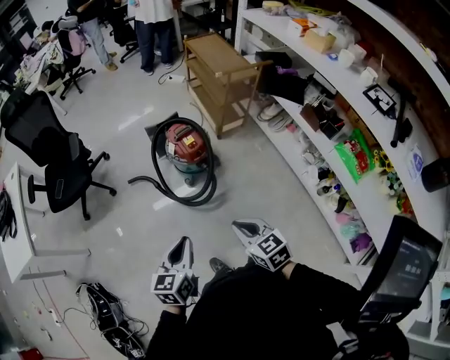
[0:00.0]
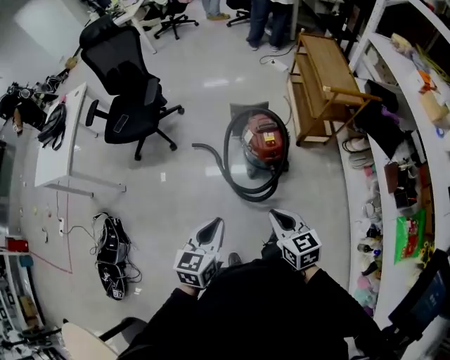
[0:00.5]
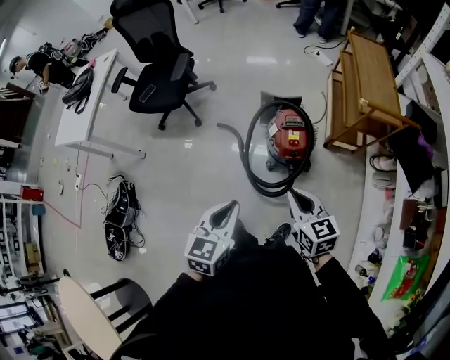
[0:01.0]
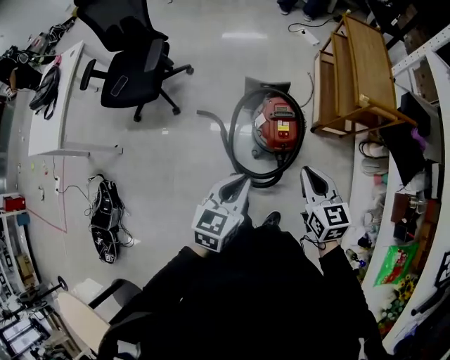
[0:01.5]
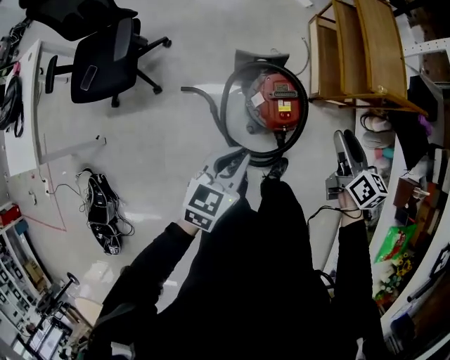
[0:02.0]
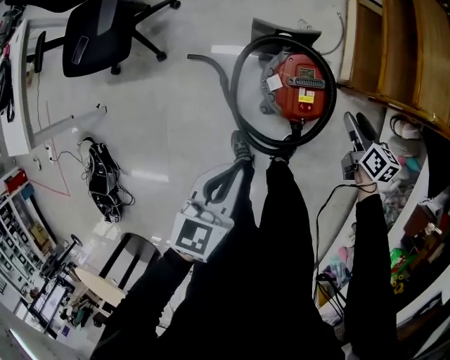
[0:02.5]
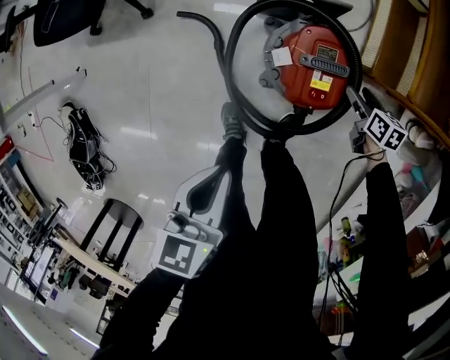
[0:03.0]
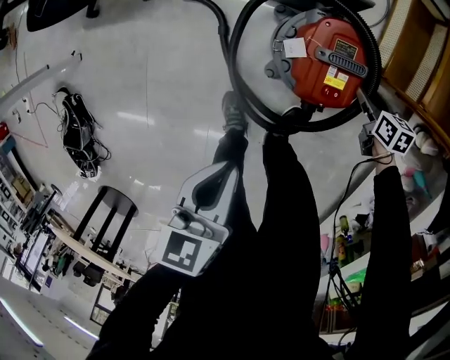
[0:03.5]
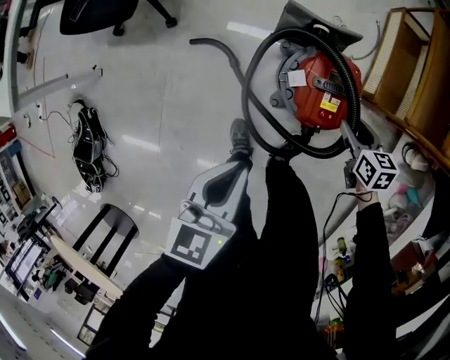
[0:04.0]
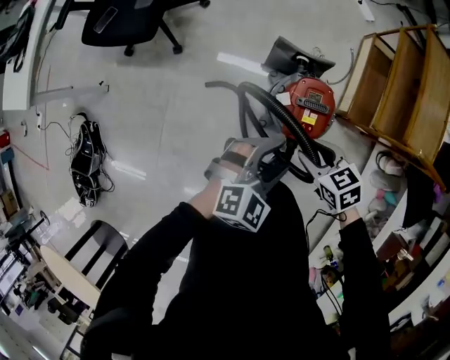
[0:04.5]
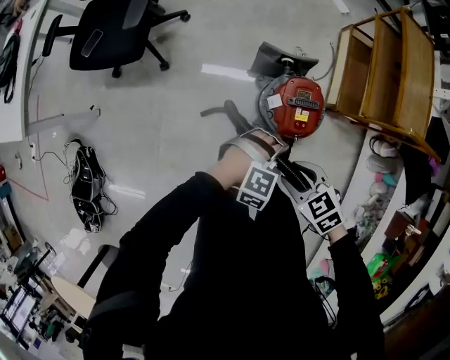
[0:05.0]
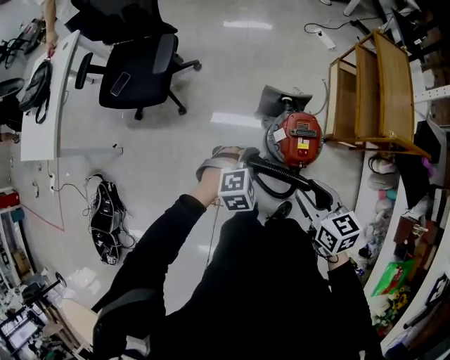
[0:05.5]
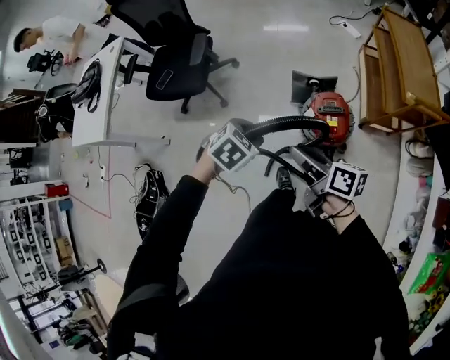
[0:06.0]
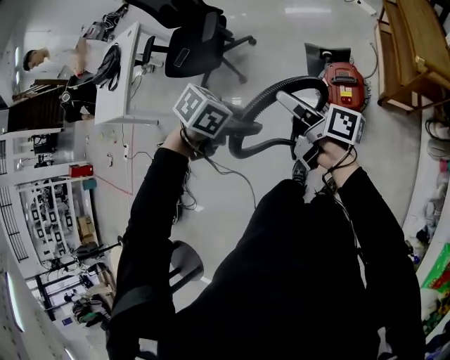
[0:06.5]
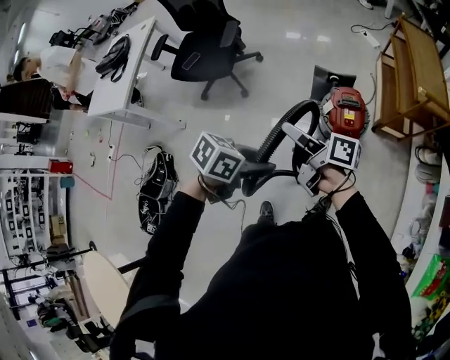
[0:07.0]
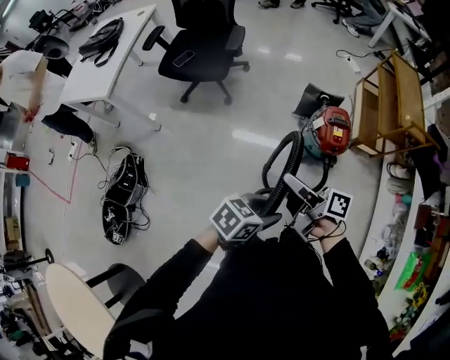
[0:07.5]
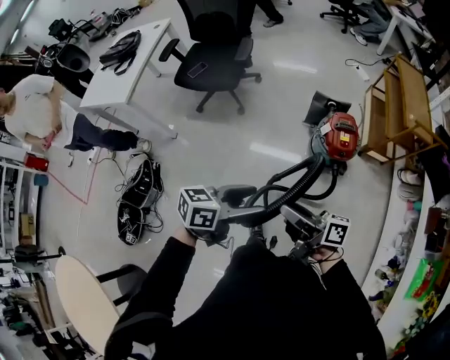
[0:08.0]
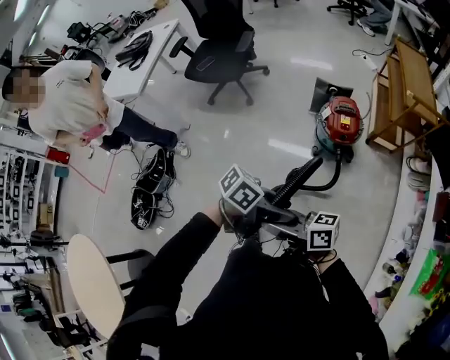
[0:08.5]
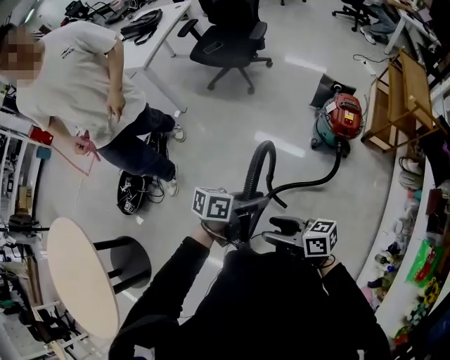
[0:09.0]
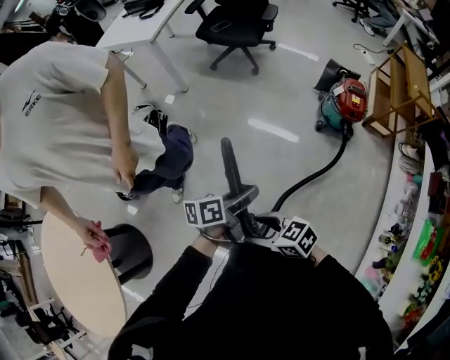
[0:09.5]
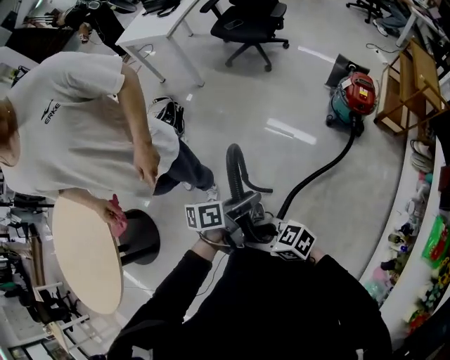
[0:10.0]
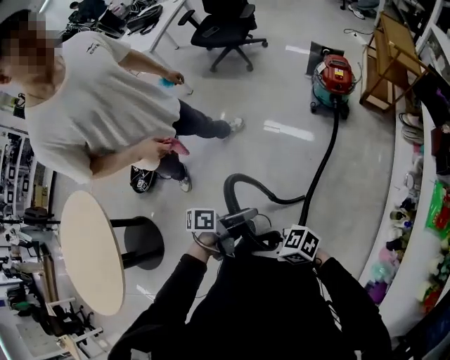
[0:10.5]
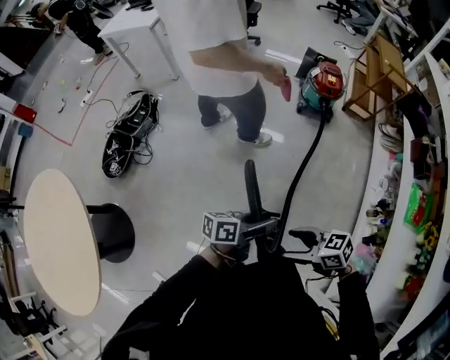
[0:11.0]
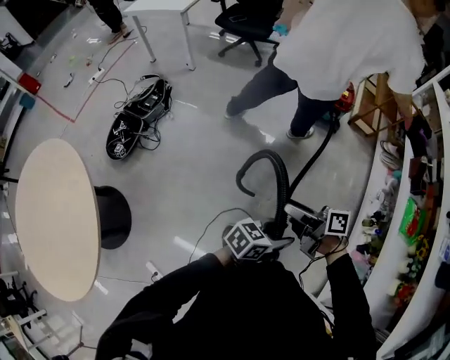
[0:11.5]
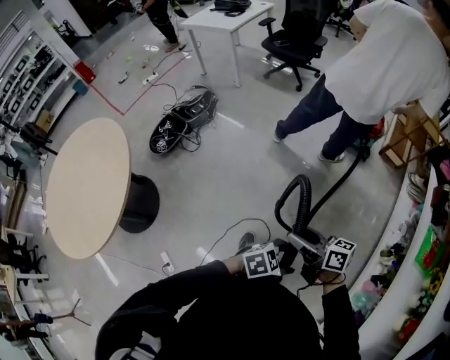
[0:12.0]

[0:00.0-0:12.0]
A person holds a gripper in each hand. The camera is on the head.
0:00.0 to 0:02.0: The pair of grippers is taken approximately 50 cm. The right gripper turns by some 30 degrees, and opens.
0:02.0 to 0:04.0: The left gripper shifts some 20 cm downward, and turns by about 30 degrees, while the right gripper heads downward, covering some 35 cm, and swivels some 40 degrees.
0:04.0 to 0:06.0: The left gripper swings up and down, some 20 cm each way, with 2 reversals, rolls clockwise, seen from behind, by roughly 40 degrees, and opens. Meanwhile the right gripper shifts some 40 cm upward, and angles its fingers upward, by some 40 degrees.
0:06.0 to 0:08.0: The left gripper changes place by about 40 cm, angles its fingers upward, by about 50 degrees, and opens up. Meanwhile the right gripper changes place by roughly 35 cm, and changes its angle by roughly 20 degrees.
0:08.0 to 0:10.0: The pair of grippers is taken some 50 cm. The right gripper points its fingers about 30 degrees further downward, while the left gripper changes its angle by about 40 degrees, and closes up.
0:10.0 to 0:12.0: The right gripper shifts by approximately 25 cm, and turns by about 40 degrees, while the left gripper ends up some 50 cm from where it was, and rotates around the line of its fingers by about 60 degrees, clockwise from behind.

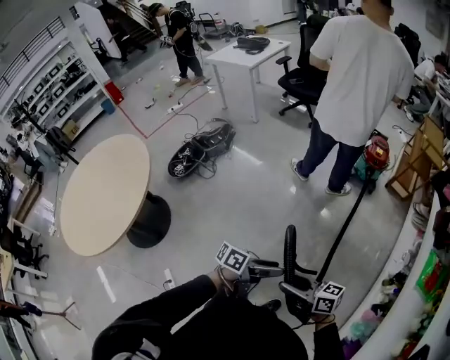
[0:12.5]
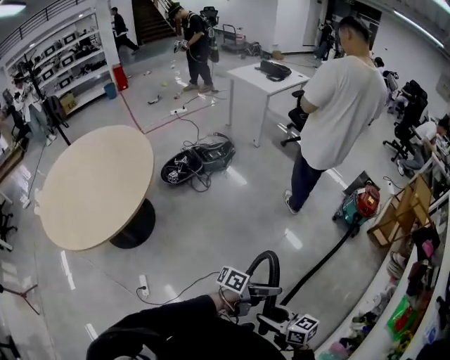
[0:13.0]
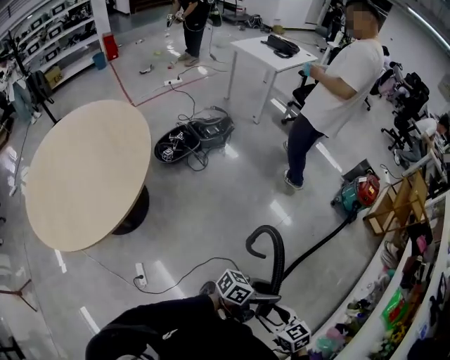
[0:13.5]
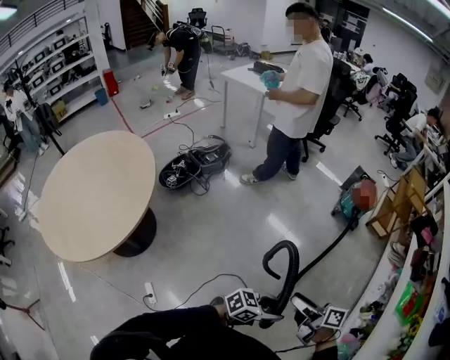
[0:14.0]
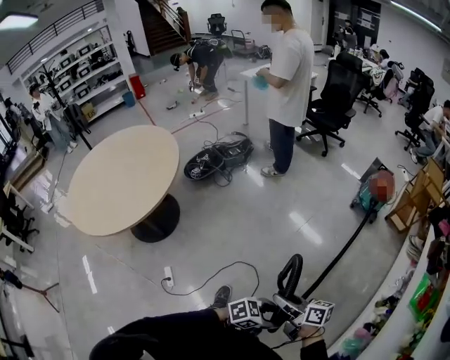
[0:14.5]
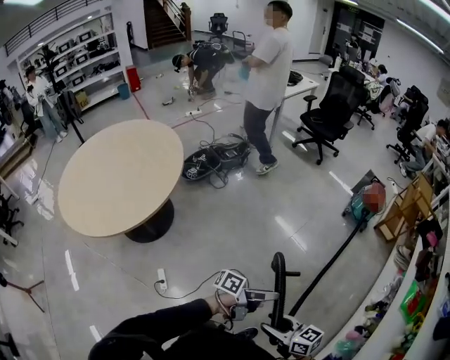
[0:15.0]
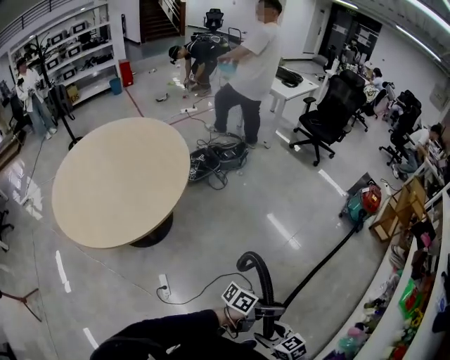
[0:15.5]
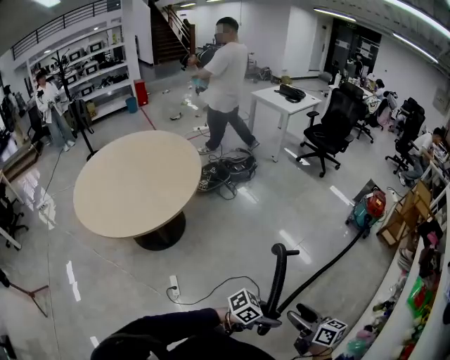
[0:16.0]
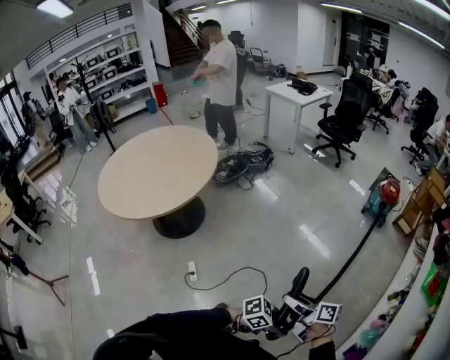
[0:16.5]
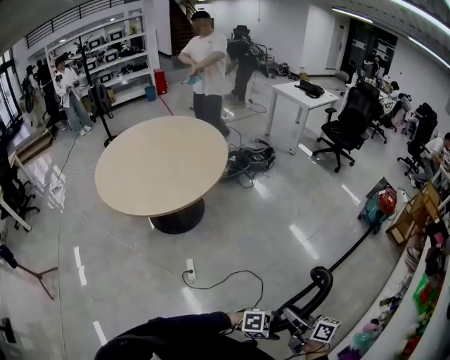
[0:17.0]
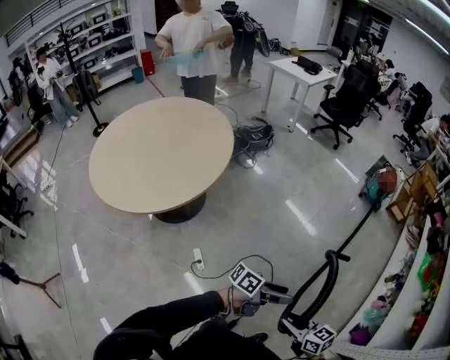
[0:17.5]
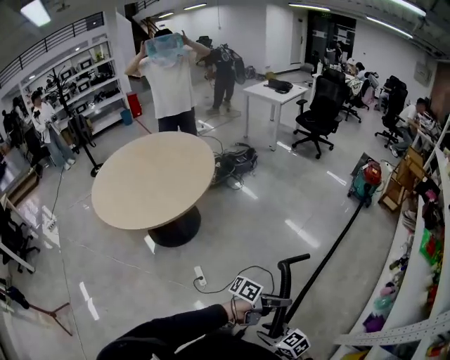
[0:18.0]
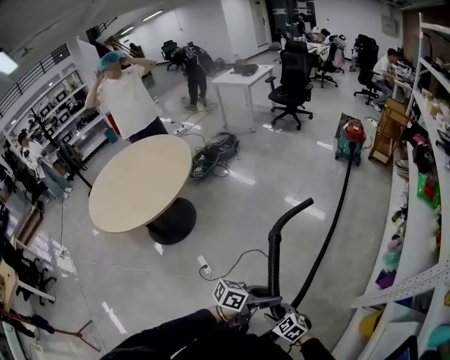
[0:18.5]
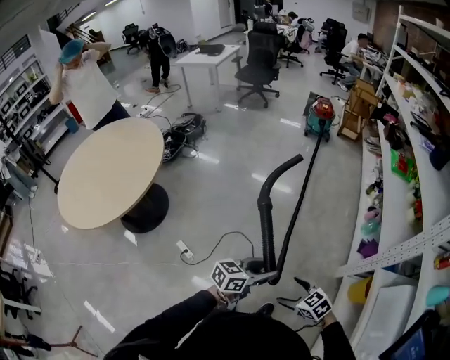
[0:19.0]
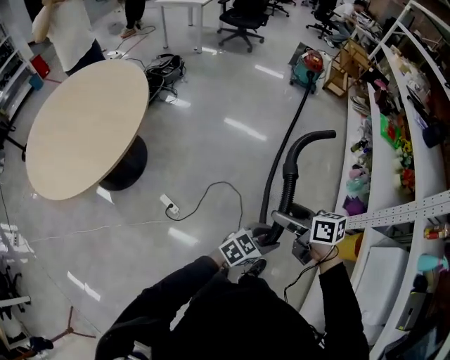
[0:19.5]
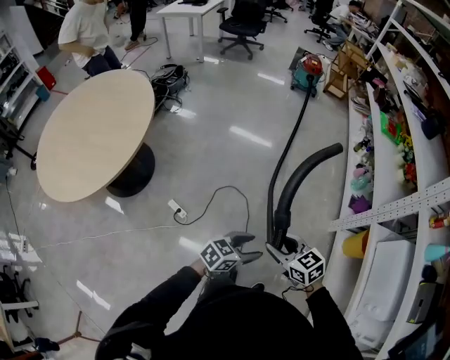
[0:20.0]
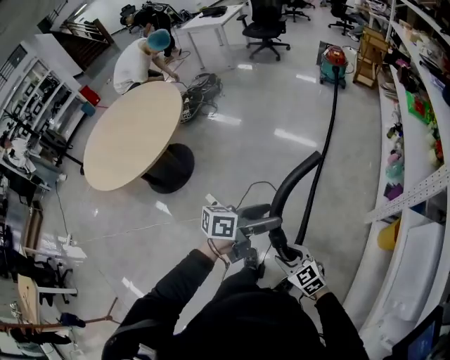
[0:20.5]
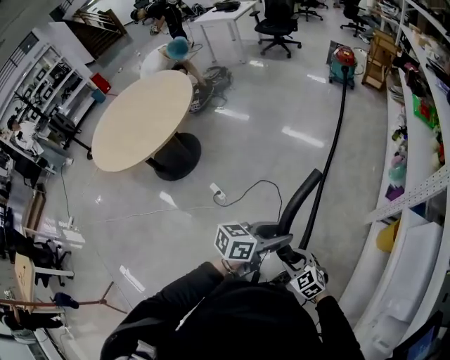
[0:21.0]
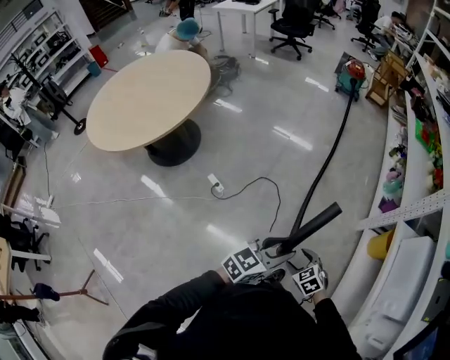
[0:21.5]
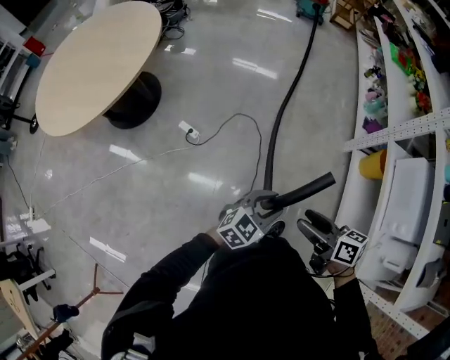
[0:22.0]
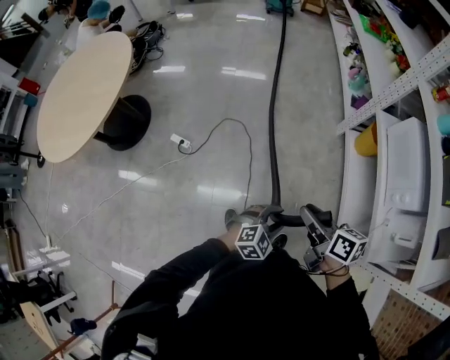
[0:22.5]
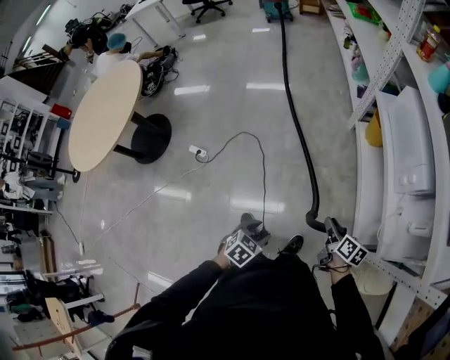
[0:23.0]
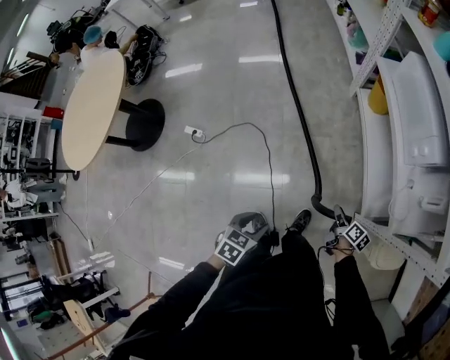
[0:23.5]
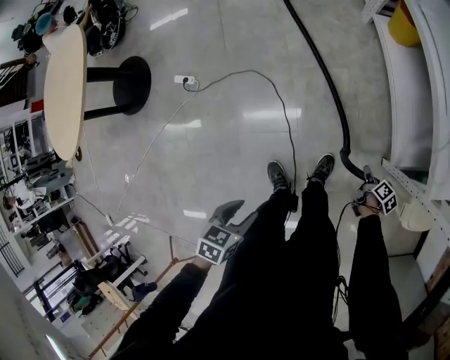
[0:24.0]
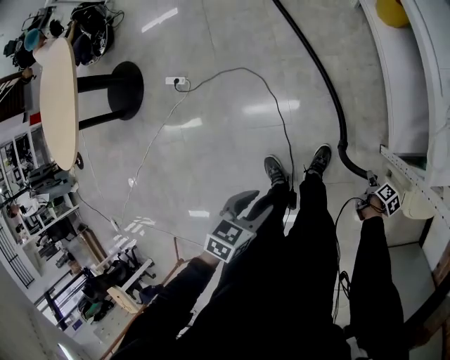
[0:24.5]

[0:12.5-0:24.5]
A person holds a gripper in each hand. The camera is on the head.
0:12.5 to 0:14.5: The left gripper changes place by approximately 25 cm, and rolls clockwise, seen from behind, by some 40 degrees. The right gripper goes up and down, about 10 cm each way, reversing 2 times.
0:14.5 to 0:16.5: The right gripper goes downward and returns, some 5 cm each way. Meanwhile the left gripper changes place by approximately 25 cm, and opens, then closes again.
0:16.5 to 0:18.5: The right gripper ends up about 40 cm from where it was, rolls counterclockwise, seen from behind, by approximately 60 degrees, and closes its fingers; the left gripper changes place by approximately 20 cm, swivels roughly 30 degrees, and opens, then closes once more.
0:18.5 to 0:20.5: The left gripper moves some 15 cm, and opens up, while the right gripper opens, then closes again.
0:20.5 to 0:22.5: The right gripper moves backward and upward, about 20 cm, and rolls clockwise, seen from behind, by roughly 60 degrees. Meanwhile the left gripper goes roughly 40 cm backward and downward, rolls clockwise, seen from behind, by some 70 degrees, and closes.
0:22.5 to 0:24.5: The left gripper travels backward, downward and to the right by about 20 cm, and rolls counterclockwise, seen from behind, by about 50 degrees, while the right gripper heads downward and to the right, covering some 70 cm, and tilts its fingers about 40 degrees downward.

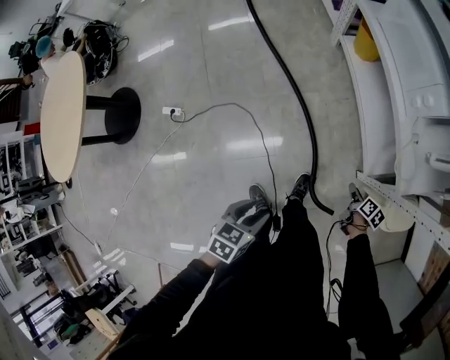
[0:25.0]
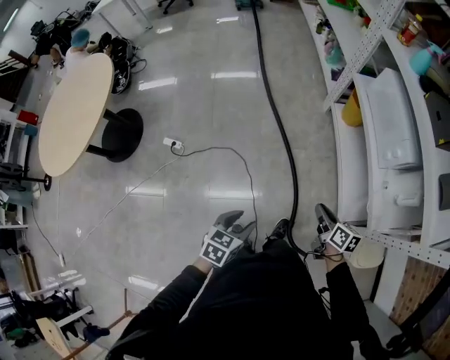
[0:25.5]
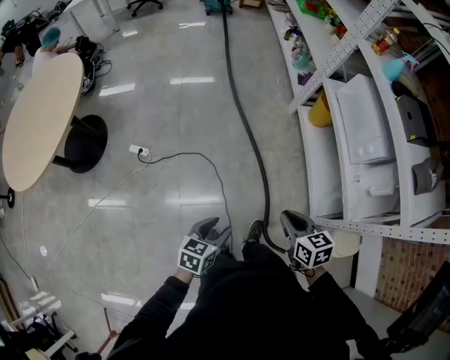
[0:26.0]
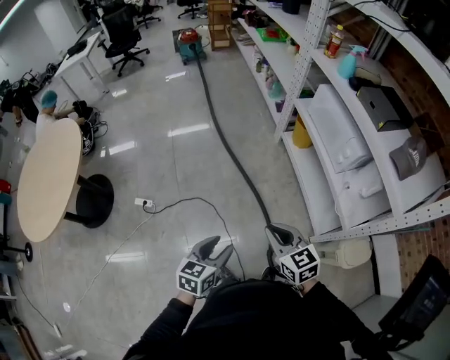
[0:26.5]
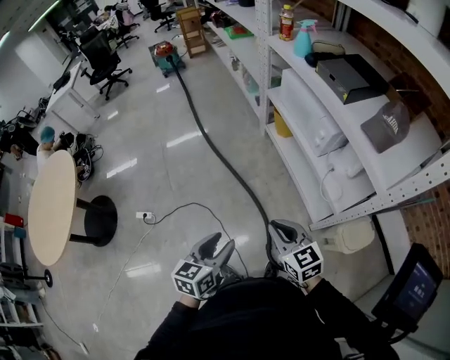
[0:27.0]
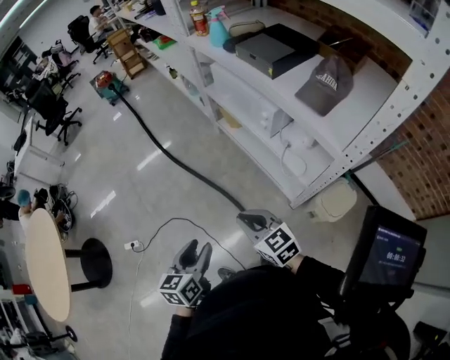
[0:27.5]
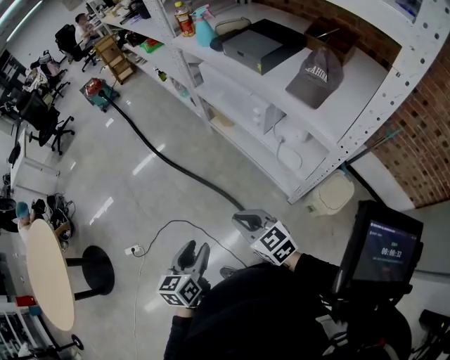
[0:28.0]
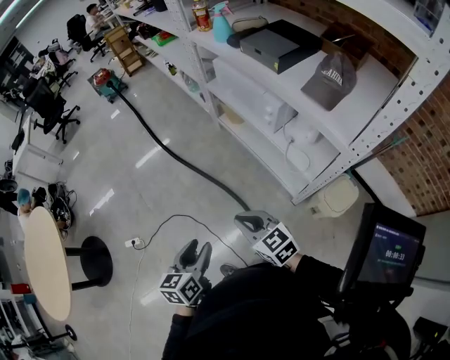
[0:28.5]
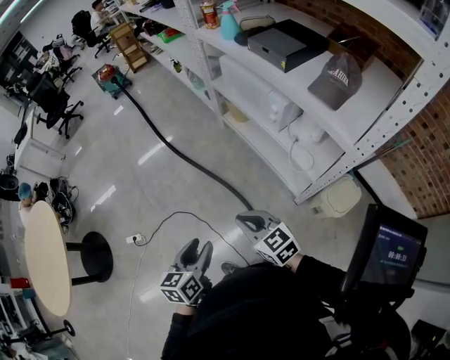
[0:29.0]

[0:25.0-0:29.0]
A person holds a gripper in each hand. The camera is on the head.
0:25.0 to 0:27.0: The right gripper heads upward, covering approximately 40 cm, and rotates around the line of its fingers by approximately 60 degrees, counterclockwise from behind. The left gripper moves upward, some 25 cm, and rotates roughly 30 degrees.
0:27.0 to 0:29.0: There are only small adjustments of the grippers.
